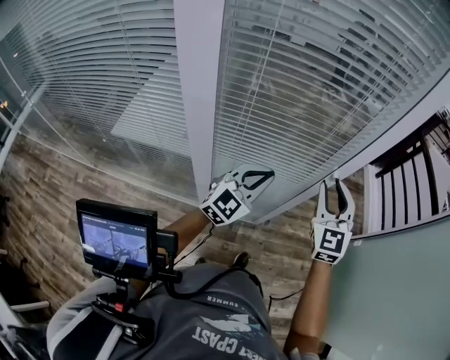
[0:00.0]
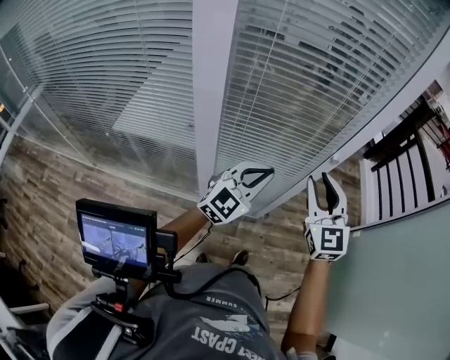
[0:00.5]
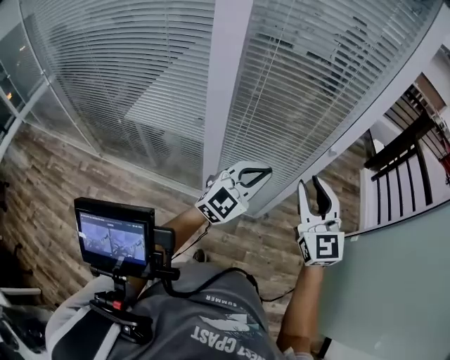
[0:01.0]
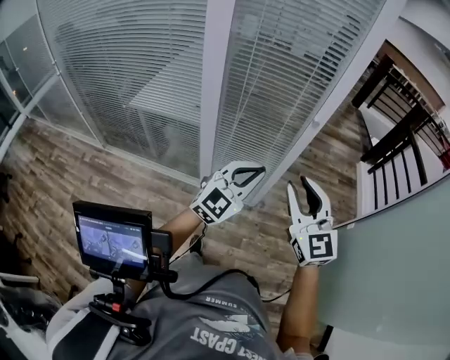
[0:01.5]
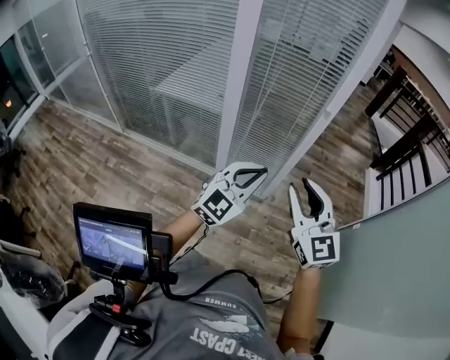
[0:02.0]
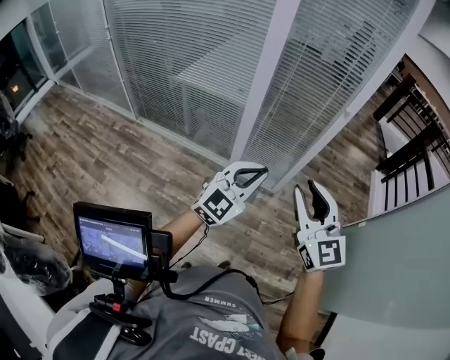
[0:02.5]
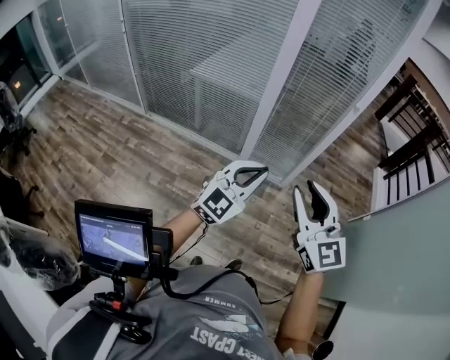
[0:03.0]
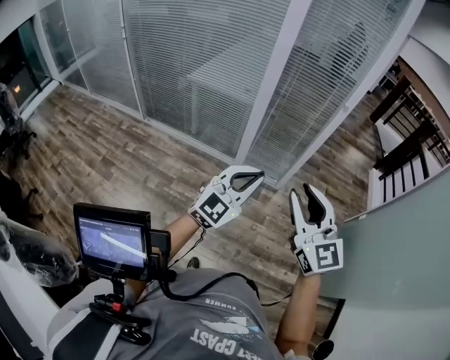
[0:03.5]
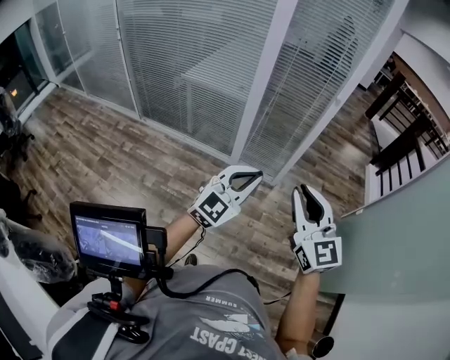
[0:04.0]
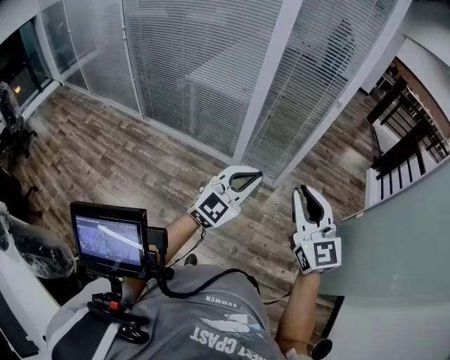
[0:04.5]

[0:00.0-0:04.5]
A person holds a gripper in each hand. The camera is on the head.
0:00.0 to 0:02.0: The pair of grippers is taken backward, some 50 cm. The right gripper swivels about 30 degrees.
0:02.0 to 0:04.5: The right gripper heads backward, covering some 25 cm. Meanwhile the left gripper travels backward and to the left by some 30 cm.

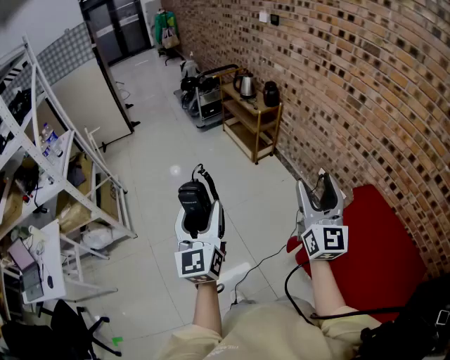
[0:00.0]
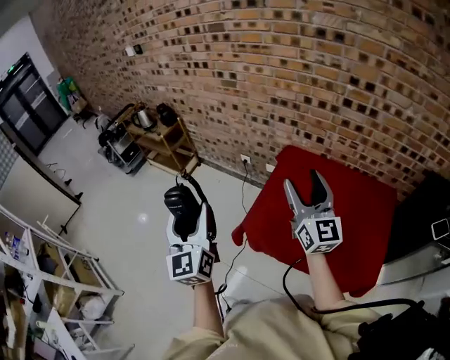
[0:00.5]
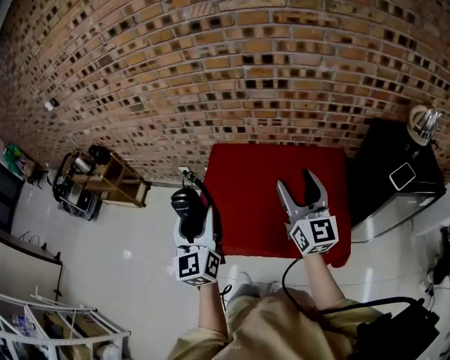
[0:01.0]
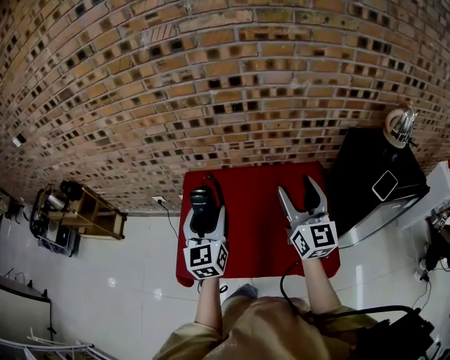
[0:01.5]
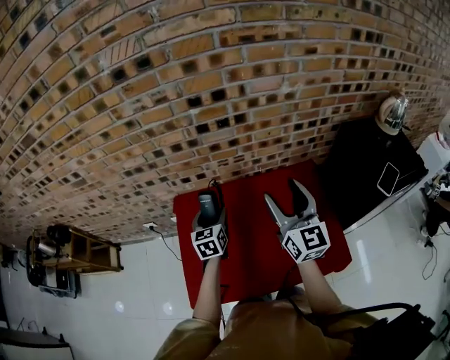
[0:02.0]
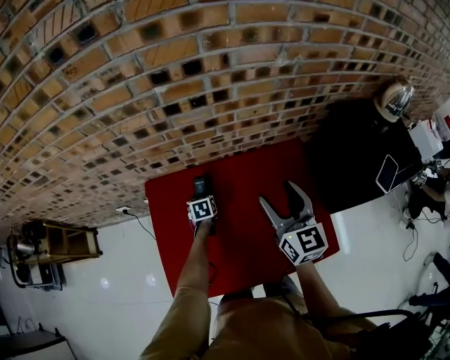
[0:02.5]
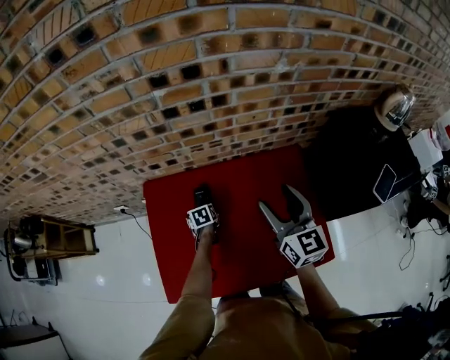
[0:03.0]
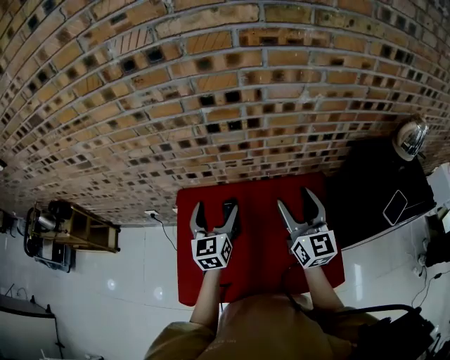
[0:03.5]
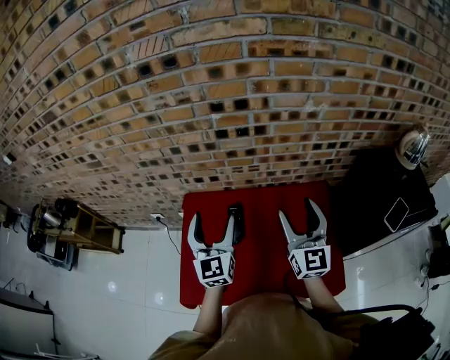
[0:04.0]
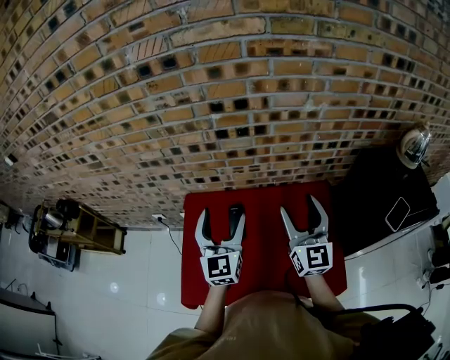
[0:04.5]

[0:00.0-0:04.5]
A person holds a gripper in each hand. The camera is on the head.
0:00.0 to 0:02.0: The pair of grippers is taken about 80 cm. The left gripper angles its fingers downward, by roughly 40 degrees. The right gripper rotates roughly 50 degrees.
0:02.0 to 0:04.5: The right gripper reaches roughly 15 cm downward, then returns. Meanwhile the left gripper is displaced upward by roughly 20 cm, and changes its angle by approximately 30 degrees.

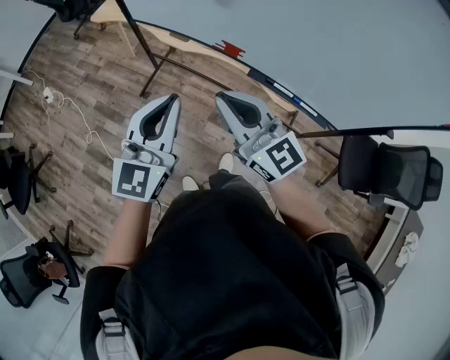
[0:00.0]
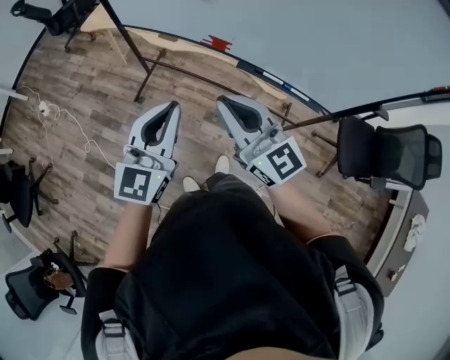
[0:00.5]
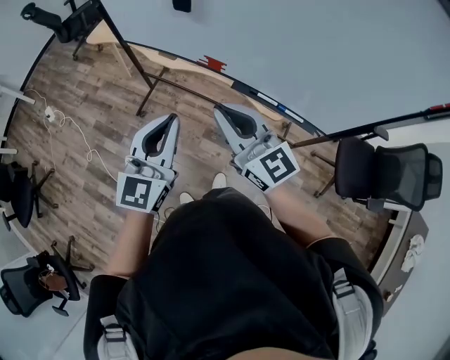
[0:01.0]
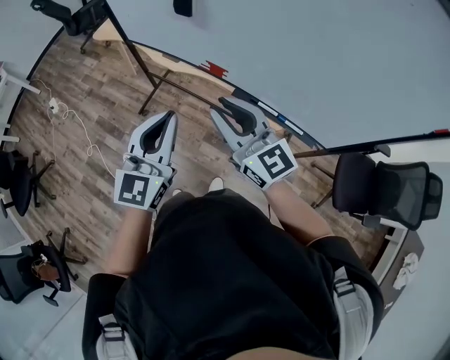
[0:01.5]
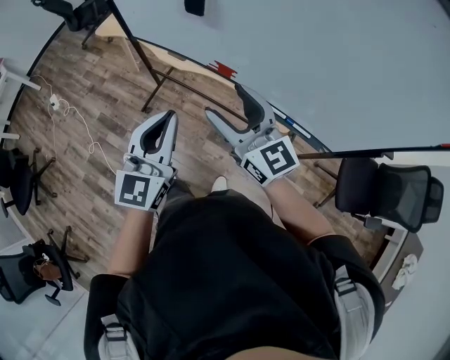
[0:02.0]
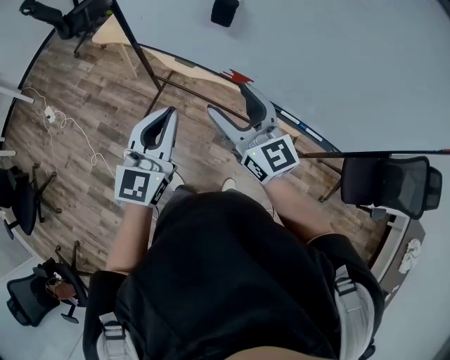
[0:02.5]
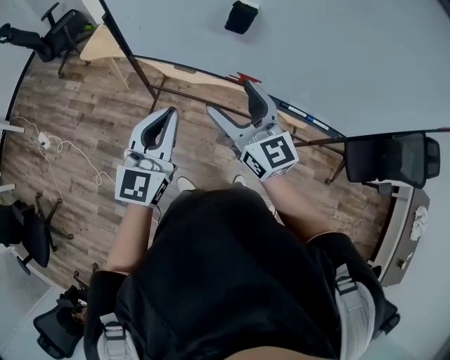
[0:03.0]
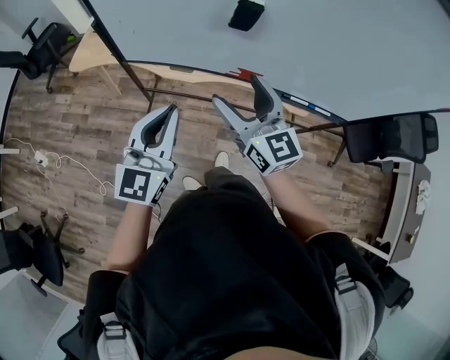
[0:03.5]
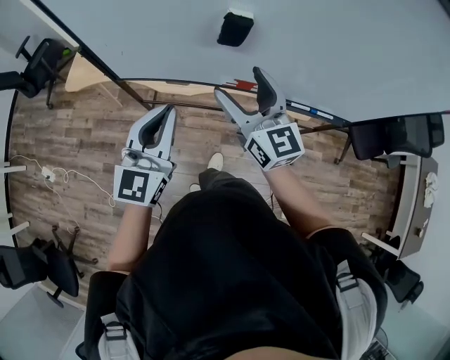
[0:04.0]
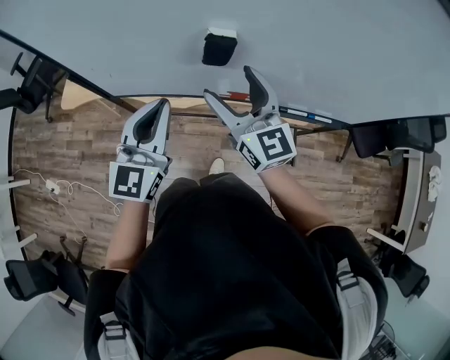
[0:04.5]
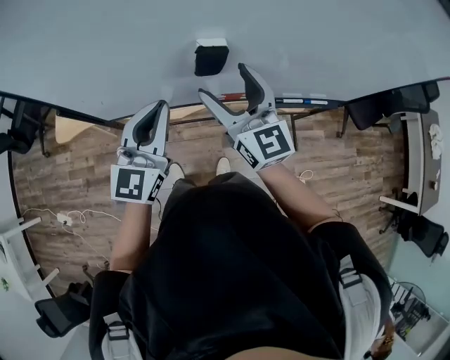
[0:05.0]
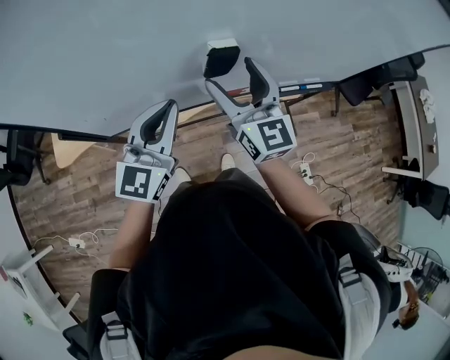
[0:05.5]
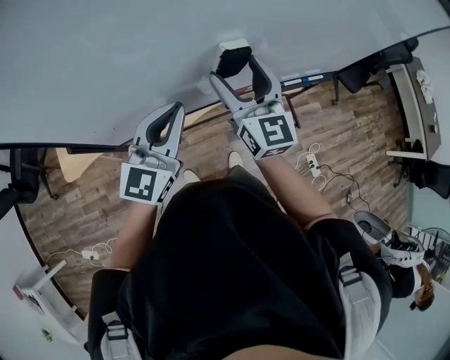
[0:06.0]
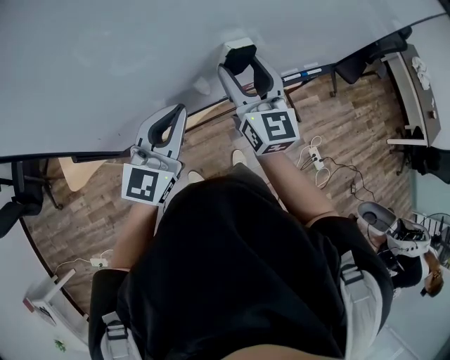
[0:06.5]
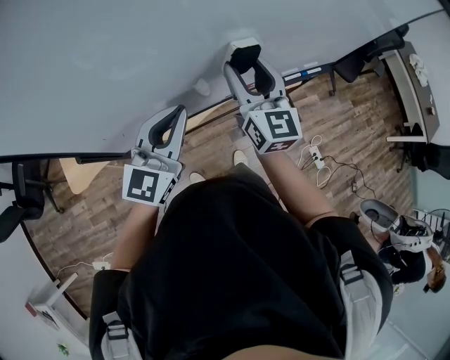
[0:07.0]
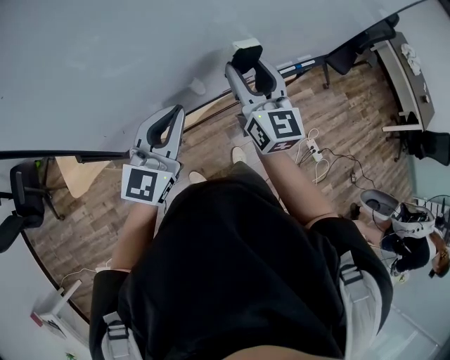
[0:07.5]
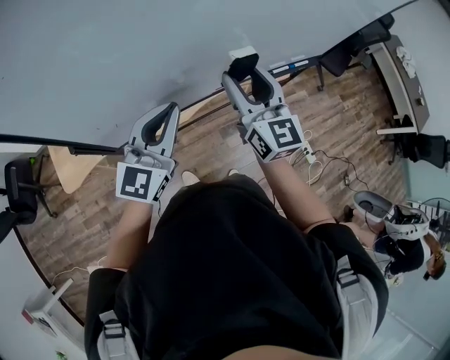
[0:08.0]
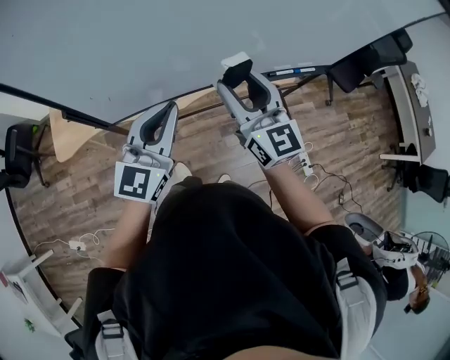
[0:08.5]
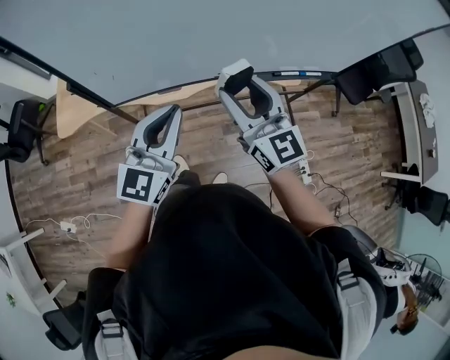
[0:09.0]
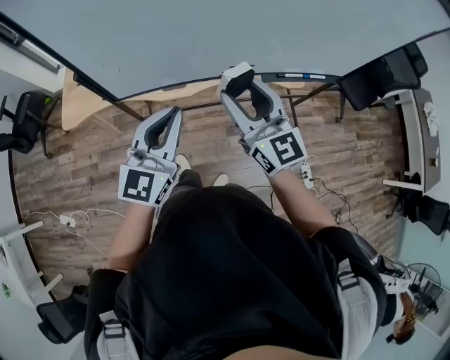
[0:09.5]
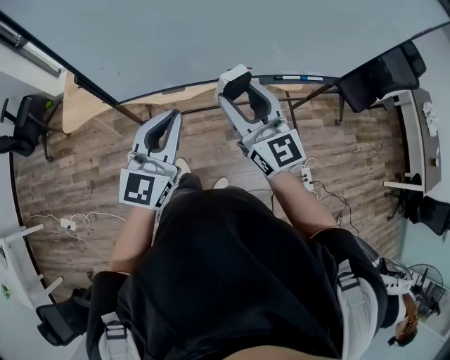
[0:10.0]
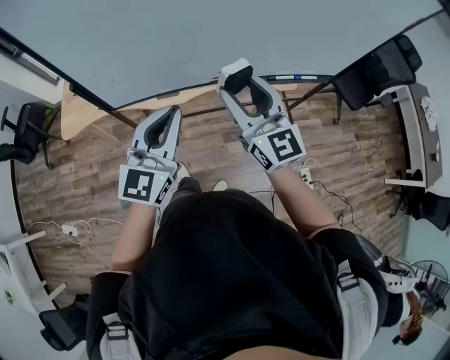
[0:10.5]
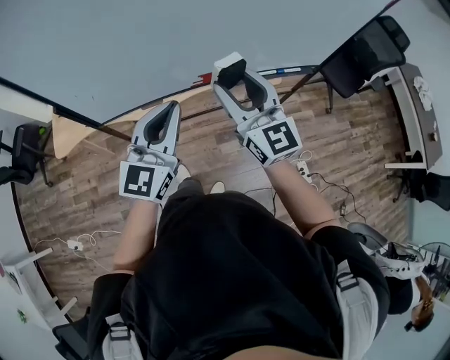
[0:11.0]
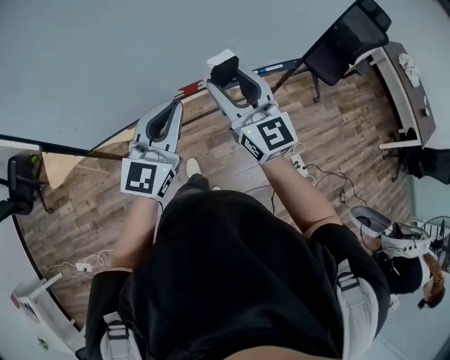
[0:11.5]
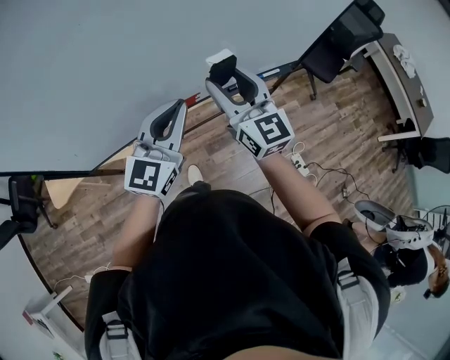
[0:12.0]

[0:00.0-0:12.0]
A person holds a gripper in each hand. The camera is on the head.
0:00.0 to 0:02.0: The right gripper travels to the right and forward by roughly 10 cm, and opens up.
0:02.0 to 0:04.0: The left gripper changes place by some 25 cm, and turns by some 20 degrees, while the right gripper ends up about 25 cm from where it was, and rotates roughly 30 degrees.
0:04.0 to 0:06.0: The left gripper ends up roughly 15 cm from where it was, and changes its angle by about 30 degrees. Meanwhile the right gripper shifts by some 10 cm, and changes its angle by approximately 30 degrees.
0:06.0 to 0:08.0: The right gripper goes about 5 cm backward, and closes up.
0:08.0 to 0:10.0: The grippers both shift backward by about 15 cm. The right gripper changes its angle by about 30 degrees.
0:10.0 to 0:12.0: Both grippers travel together forward and to the right, approximately 20 cm.

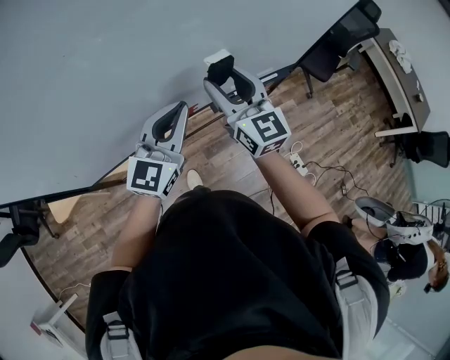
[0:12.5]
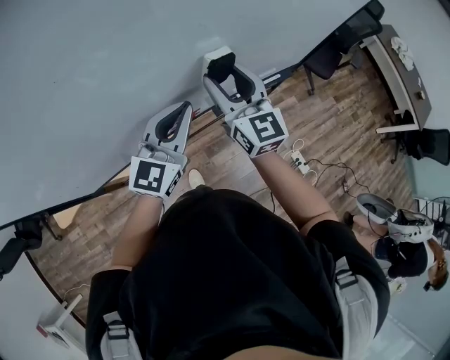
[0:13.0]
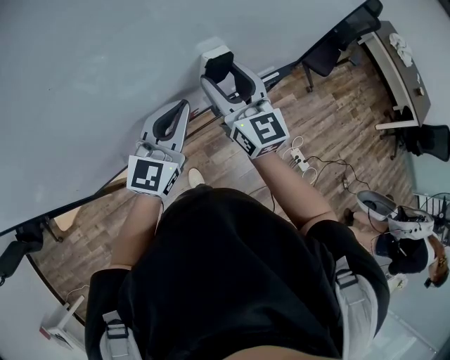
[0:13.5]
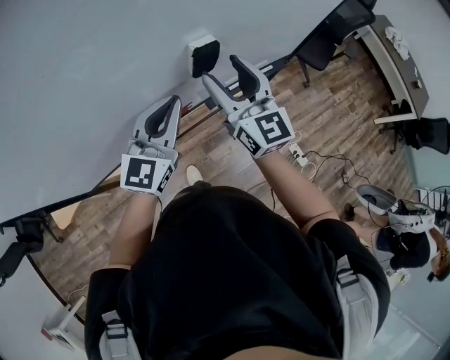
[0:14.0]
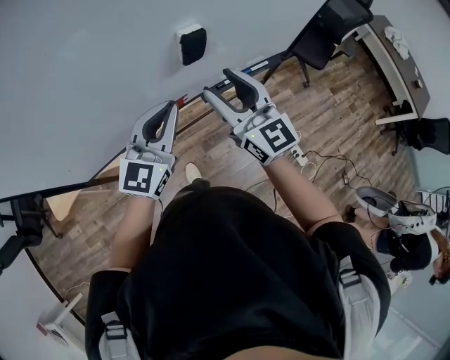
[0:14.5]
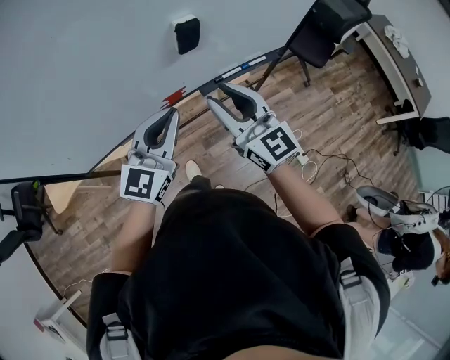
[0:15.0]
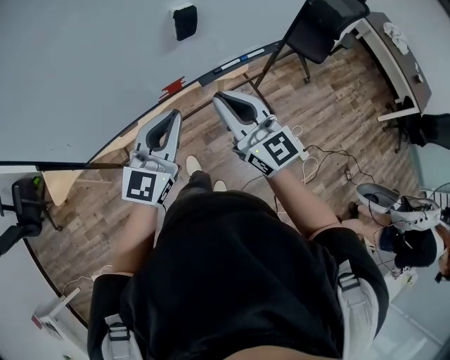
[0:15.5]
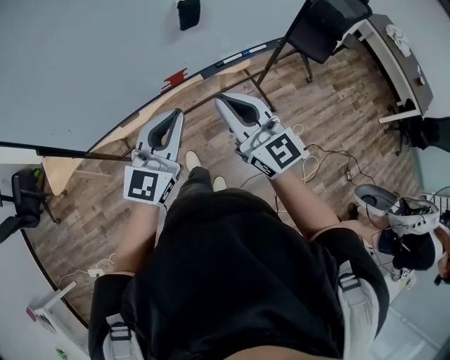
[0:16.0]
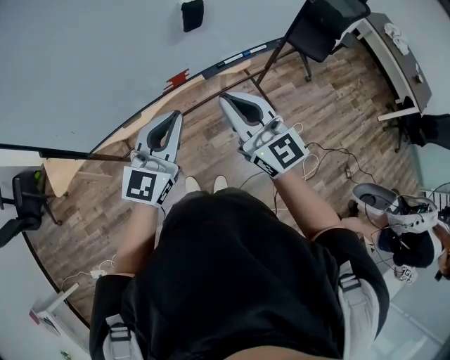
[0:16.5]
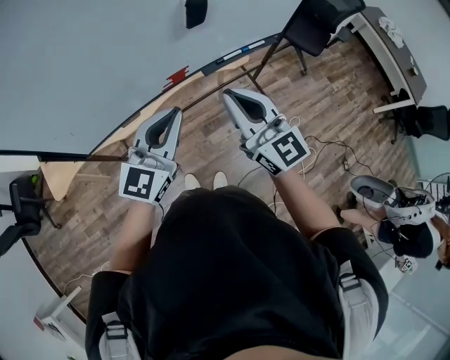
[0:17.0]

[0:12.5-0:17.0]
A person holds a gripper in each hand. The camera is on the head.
0:12.5 to 0:14.5: The right gripper goes about 5 cm backward.
0:14.5 to 0:17.0: Both grippers travel together backward, some 15 cm. The right gripper closes.

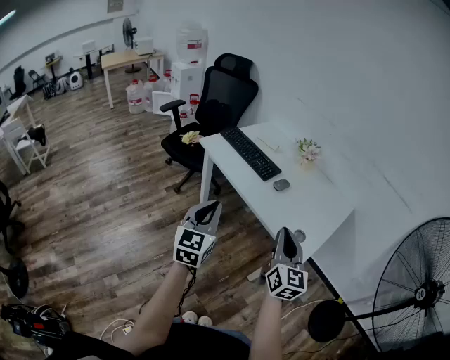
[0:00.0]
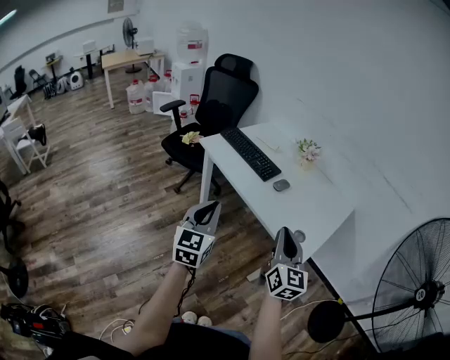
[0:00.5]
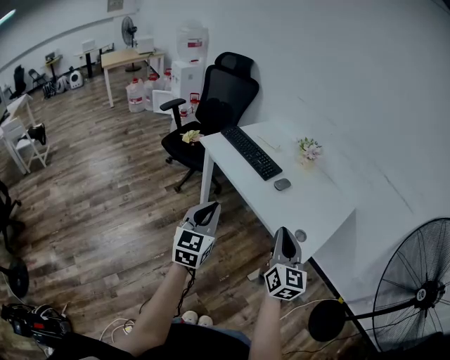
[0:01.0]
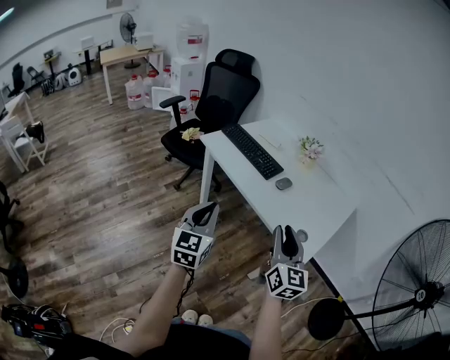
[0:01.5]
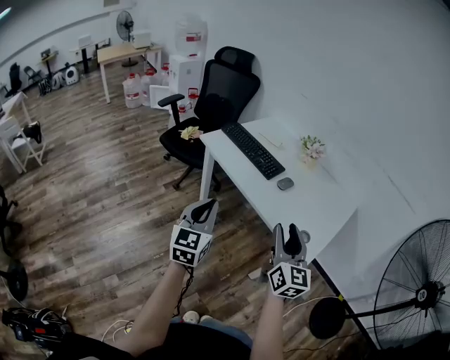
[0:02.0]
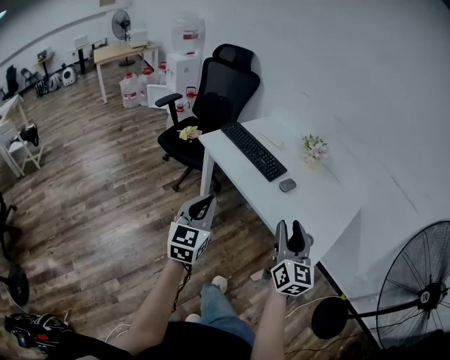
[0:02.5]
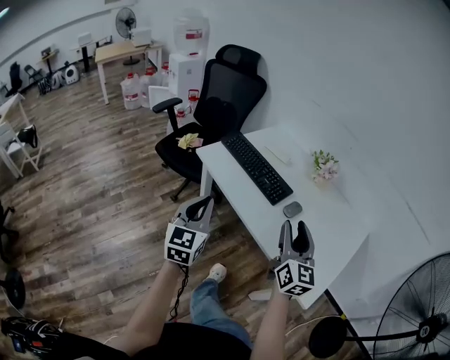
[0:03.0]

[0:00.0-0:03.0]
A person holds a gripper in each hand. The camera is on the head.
0:00.0 to 0:01.5: The grippers stay close to where they were, moving slightly.
0:01.5 to 0:03.0: Both grippers travel together forward, some 20 cm.
